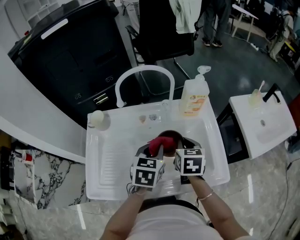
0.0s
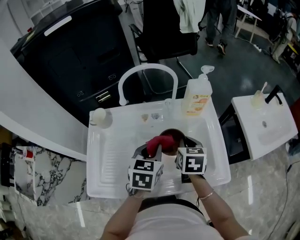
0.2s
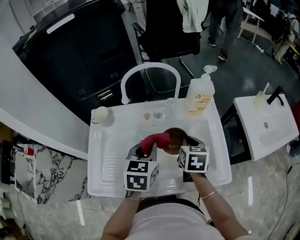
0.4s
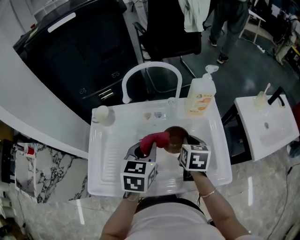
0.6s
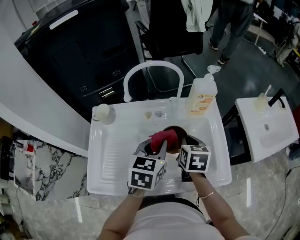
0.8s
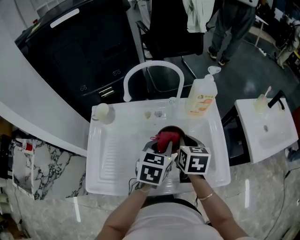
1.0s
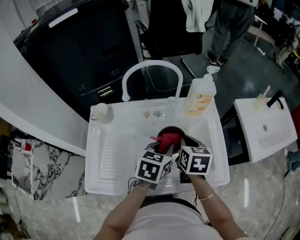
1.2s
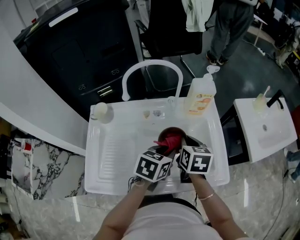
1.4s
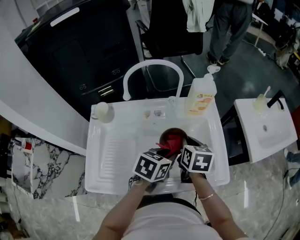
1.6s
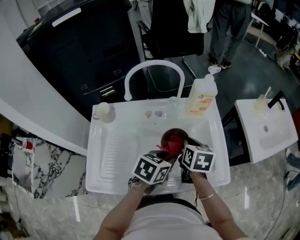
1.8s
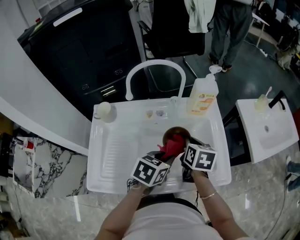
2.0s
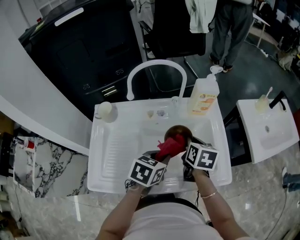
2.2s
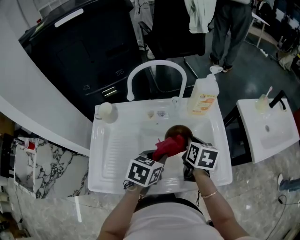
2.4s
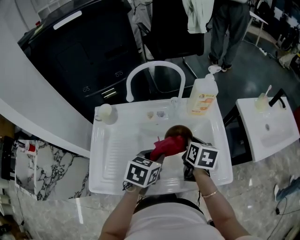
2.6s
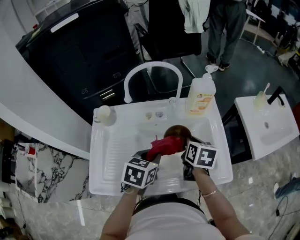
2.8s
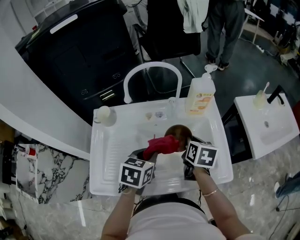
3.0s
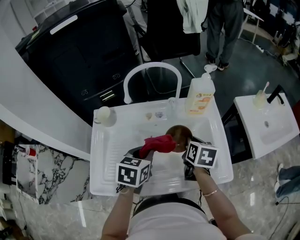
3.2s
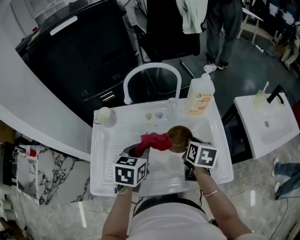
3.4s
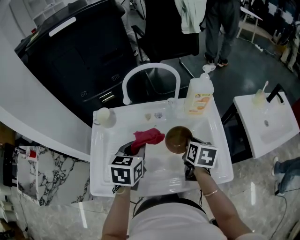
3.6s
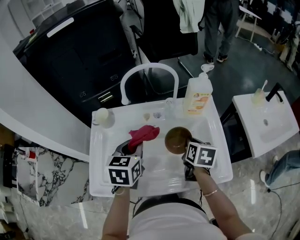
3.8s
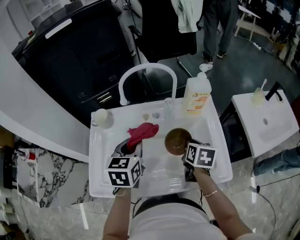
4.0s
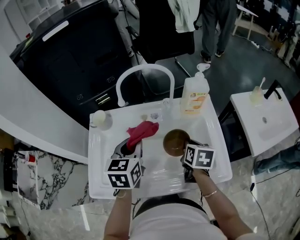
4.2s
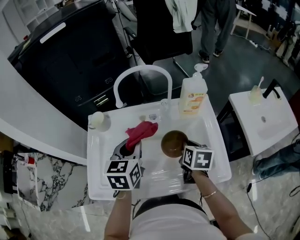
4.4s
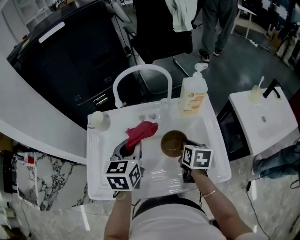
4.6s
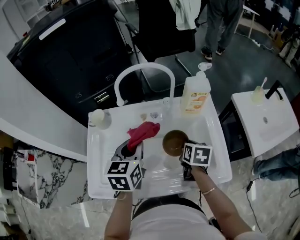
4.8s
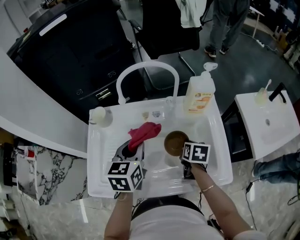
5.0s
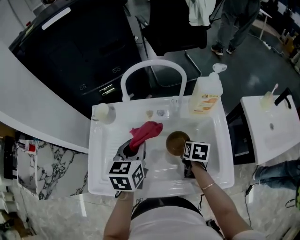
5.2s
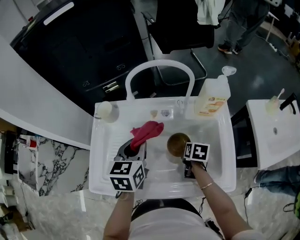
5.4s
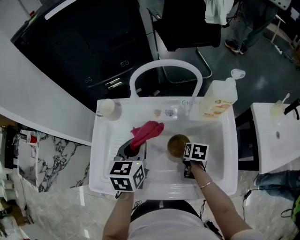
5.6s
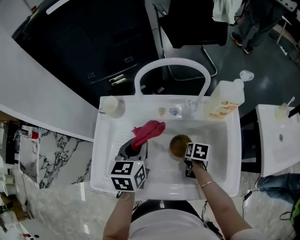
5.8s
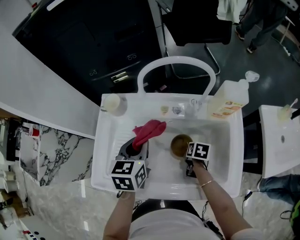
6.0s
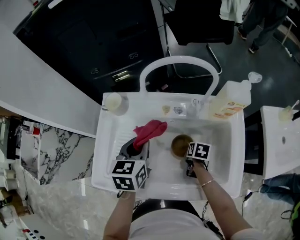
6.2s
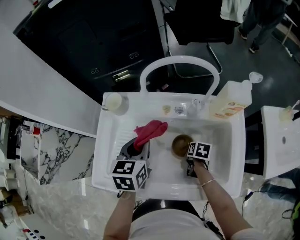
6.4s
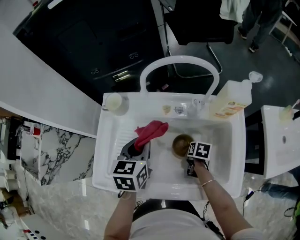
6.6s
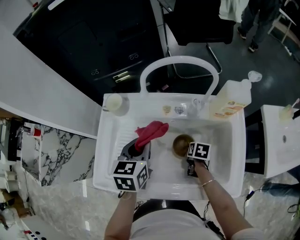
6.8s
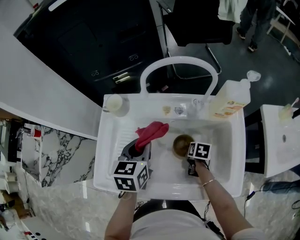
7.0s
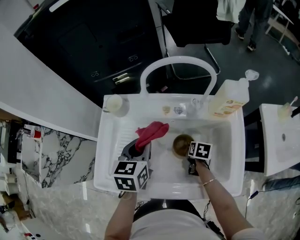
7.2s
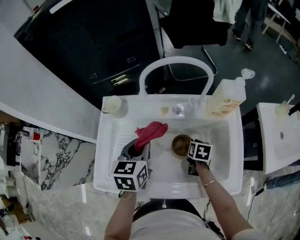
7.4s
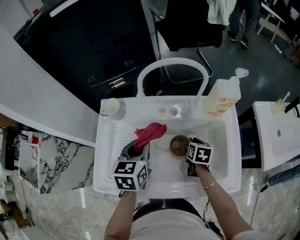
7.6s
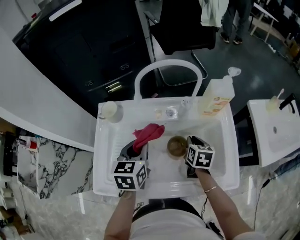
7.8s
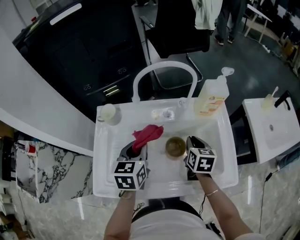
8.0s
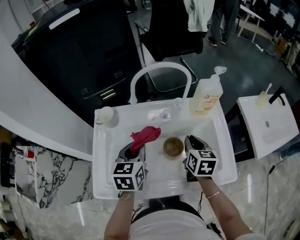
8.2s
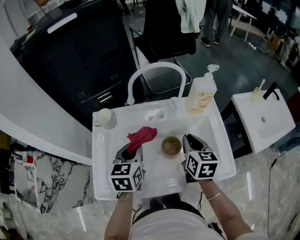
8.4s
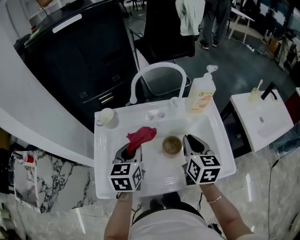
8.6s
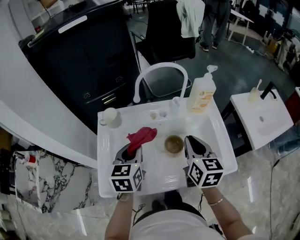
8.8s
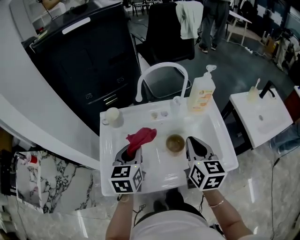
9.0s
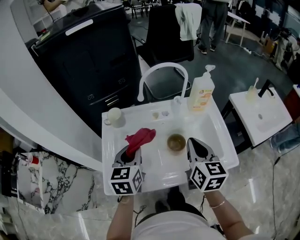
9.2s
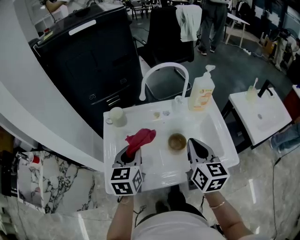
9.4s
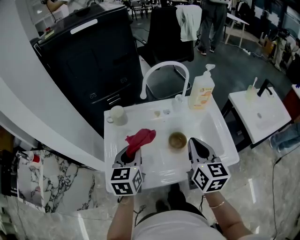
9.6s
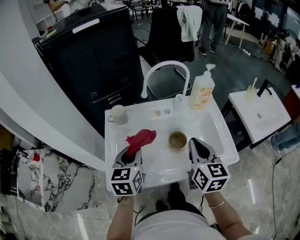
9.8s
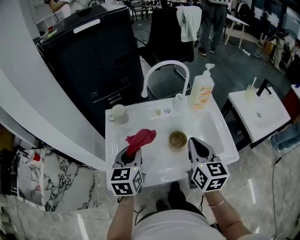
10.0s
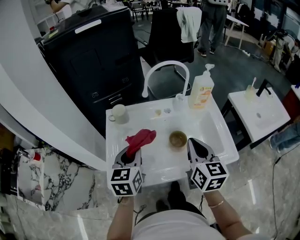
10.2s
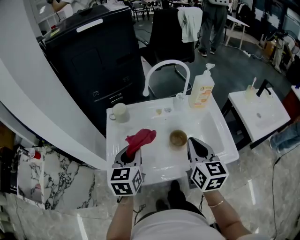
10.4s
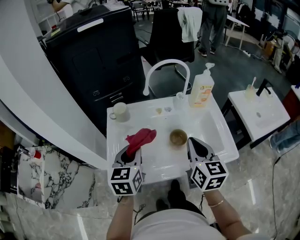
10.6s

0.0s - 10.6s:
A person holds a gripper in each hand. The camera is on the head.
0.0s - 1.6s: The left gripper goes about 5 cm to the right, and rotates about 20 degrees.
1.6s - 3.0s: The left gripper travels to the left by some 10 cm.
3.0s - 4.6s: The left gripper heads upward, covering about 5 cm, and rotates approximately 20 degrees.
4.6s - 6.0s: The right gripper travels downward by about 20 cm, and turns by approximately 20 degrees. The left gripper travels downward and to the left by about 10 cm.
6.0s - 7.6s: The right gripper shifts approximately 10 cm upward.
7.6s - 9.0s: The left gripper moves backward and upward, some 10 cm; the right gripper is displaced upward and backward by roughly 30 cm, and angles its fingers upward, by some 30 degrees.
9.0s - 10.6s: The two grippers go roughly 5 cm backward.

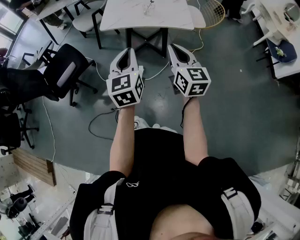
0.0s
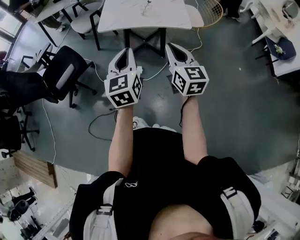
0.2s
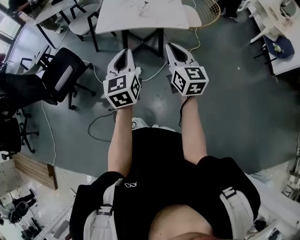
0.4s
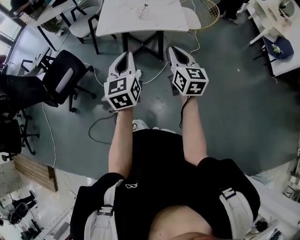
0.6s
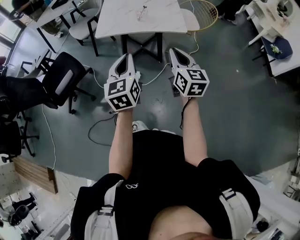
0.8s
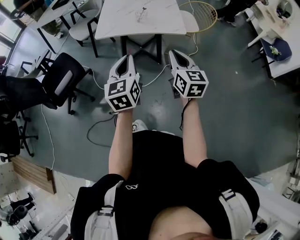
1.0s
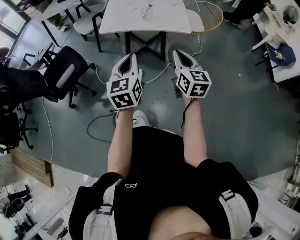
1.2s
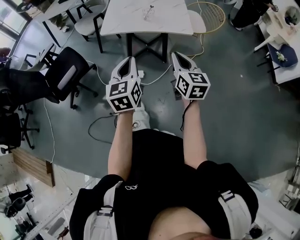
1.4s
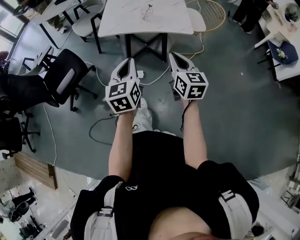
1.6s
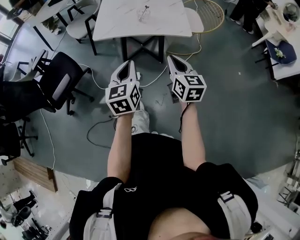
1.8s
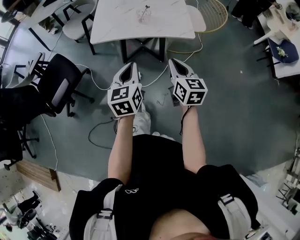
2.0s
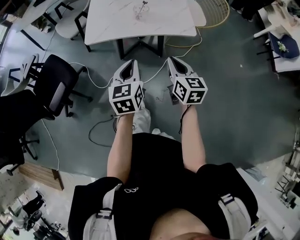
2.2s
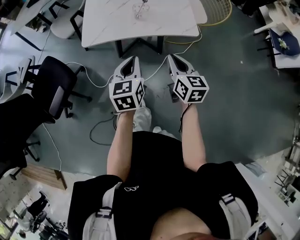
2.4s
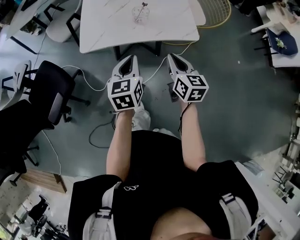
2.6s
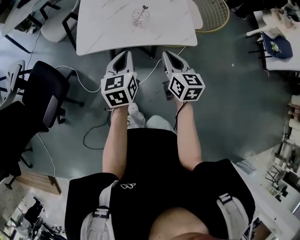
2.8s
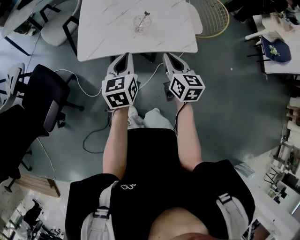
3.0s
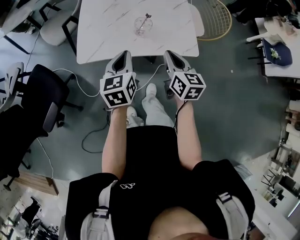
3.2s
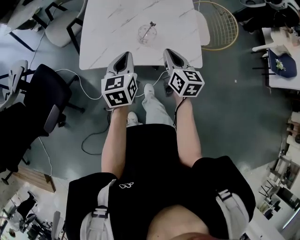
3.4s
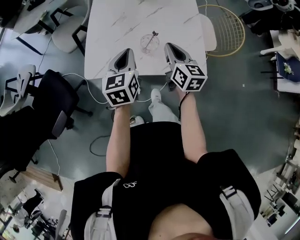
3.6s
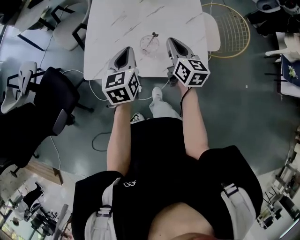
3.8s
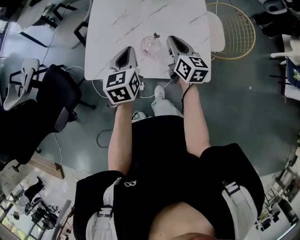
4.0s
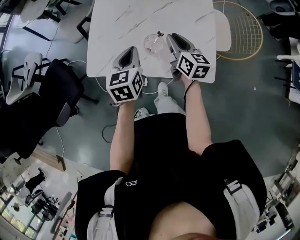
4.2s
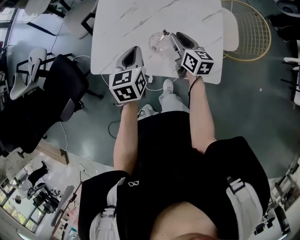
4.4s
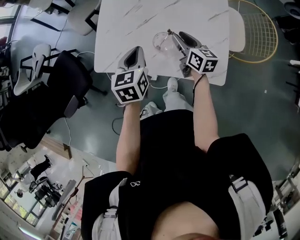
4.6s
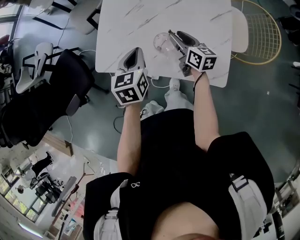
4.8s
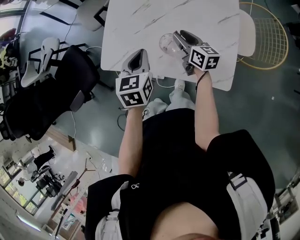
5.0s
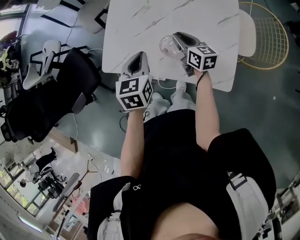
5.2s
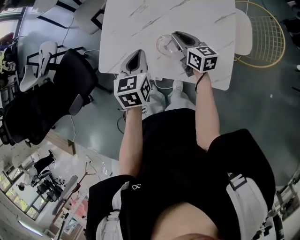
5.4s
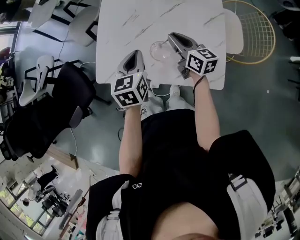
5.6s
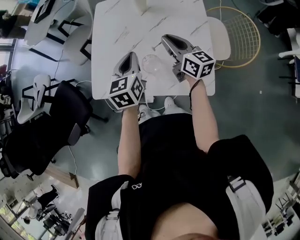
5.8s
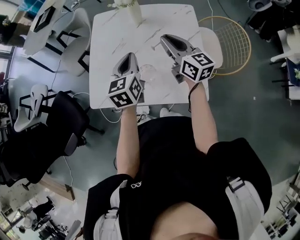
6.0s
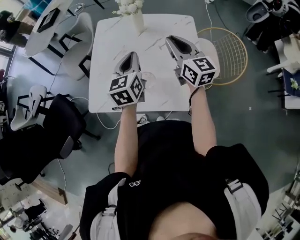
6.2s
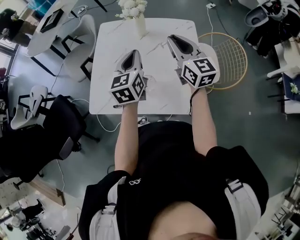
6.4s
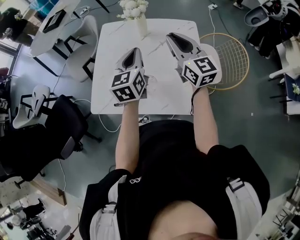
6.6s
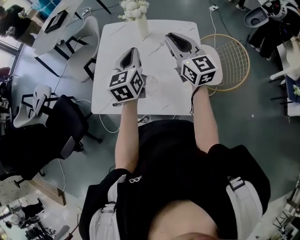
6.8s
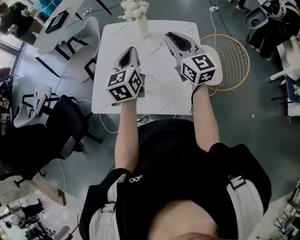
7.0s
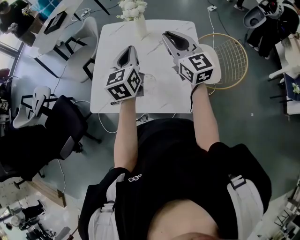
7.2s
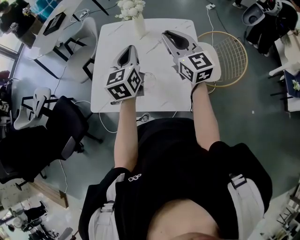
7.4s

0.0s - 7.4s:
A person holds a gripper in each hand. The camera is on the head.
0.0s - 1.4s: The right gripper changes place by roughly 5 cm.
1.4s - 3.0s: Both grippers move forward, approximately 30 cm.
3.0s - 4.4s: Both grippers move forward, some 20 cm. The right gripper opens.
4.4s - 6.0s: The right gripper heads upward, covering roughly 15 cm, and changes its angle by roughly 20 degrees, while the left gripper shifts approximately 10 cm upward, forward and to the right.
6.0s - 7.4s: The two grippers go roughly 10 cm upward. The right gripper turns by approximately 20 degrees.

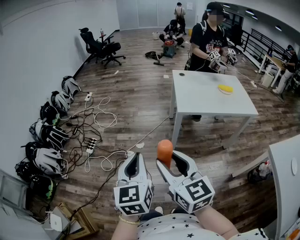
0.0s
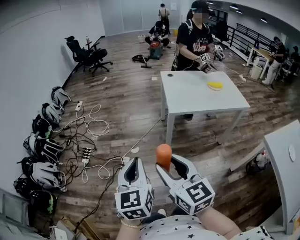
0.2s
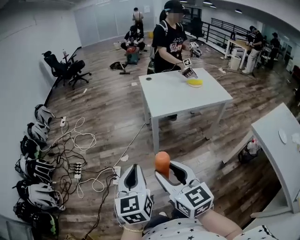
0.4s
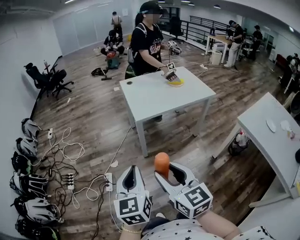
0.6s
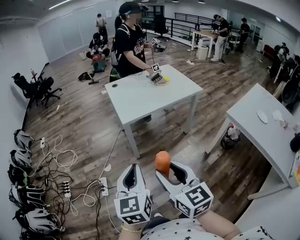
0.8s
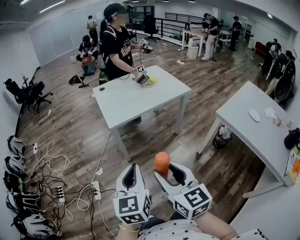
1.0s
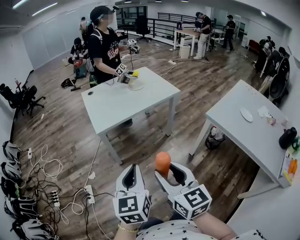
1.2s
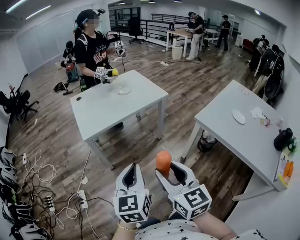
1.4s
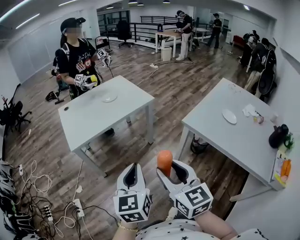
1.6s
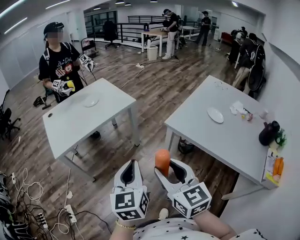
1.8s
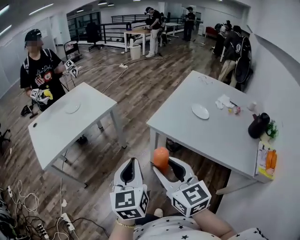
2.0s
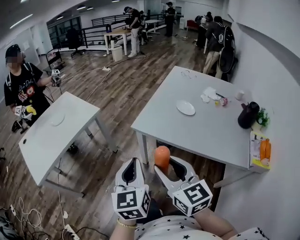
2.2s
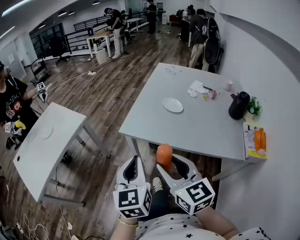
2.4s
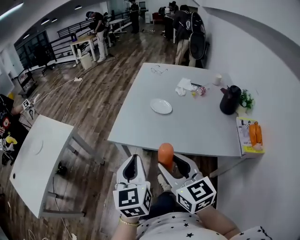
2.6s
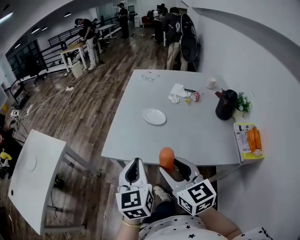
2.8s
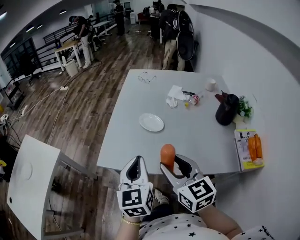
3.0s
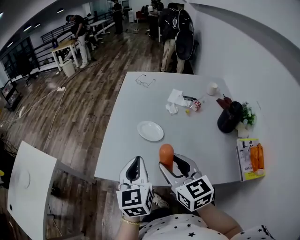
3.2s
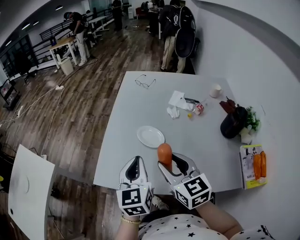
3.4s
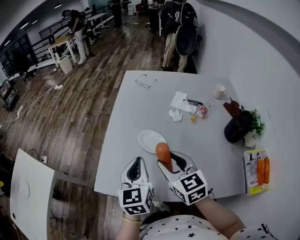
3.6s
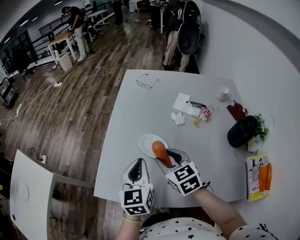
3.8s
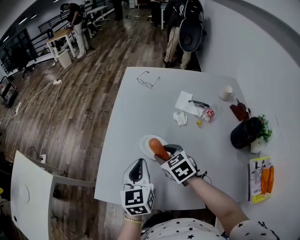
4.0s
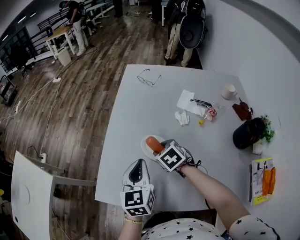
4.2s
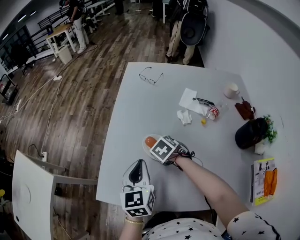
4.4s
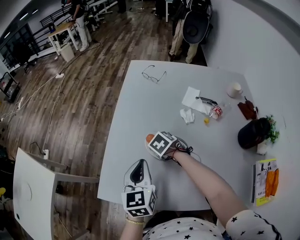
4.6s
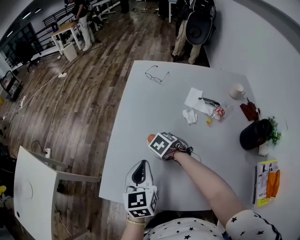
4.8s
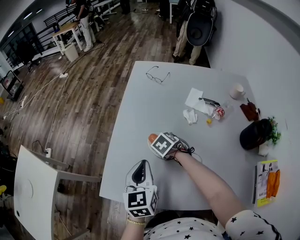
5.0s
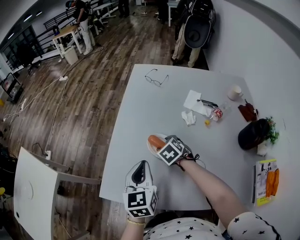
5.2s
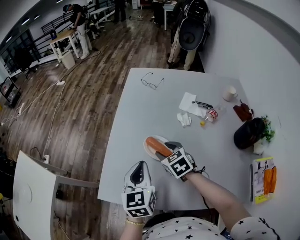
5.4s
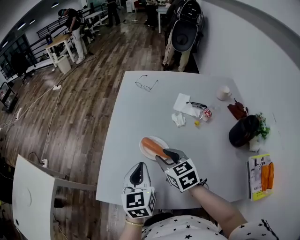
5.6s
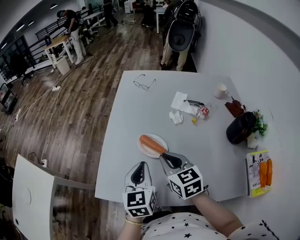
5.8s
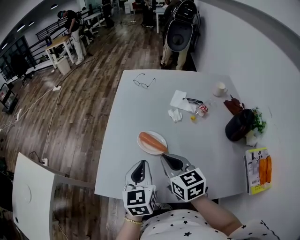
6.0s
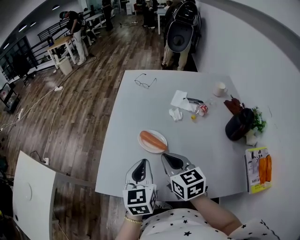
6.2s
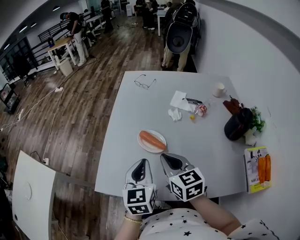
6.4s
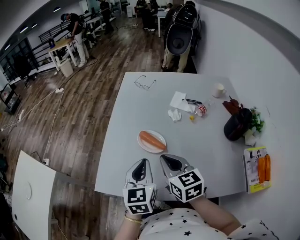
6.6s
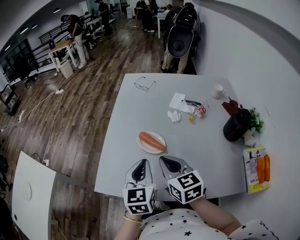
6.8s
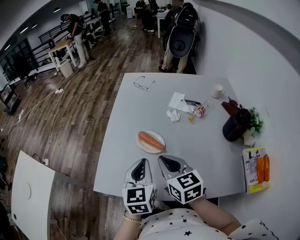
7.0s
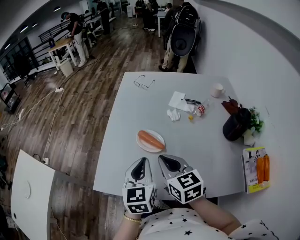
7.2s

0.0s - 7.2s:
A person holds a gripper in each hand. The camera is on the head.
0.0s - 1.4s: The right gripper changes place by some 40 cm, and rotates about 40 degrees; the left gripper moves roughly 40 cm, and turns by roughly 40 degrees.
1.4s - 2.8s: The two grippers travel together, approximately 50 cm. The right gripper rotates some 40 degrees. Meanwhile the left gripper rotates approximately 40 degrees.
2.8s - 4.4s: The right gripper shifts approximately 50 cm forward and downward, and angles its fingers downward, by some 60 degrees. Meanwhile the left gripper moves forward, roughly 30 cm.
4.4s - 5.8s: The right gripper shifts some 20 cm upward and backward, tips its fingers upward by about 40 degrees, and closes up. The left gripper goes roughly 5 cm backward.
5.8s - 7.2s: The right gripper goes about 5 cm backward.
